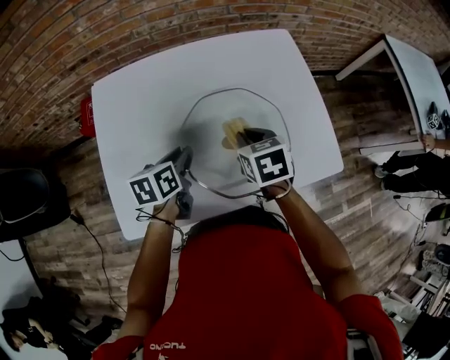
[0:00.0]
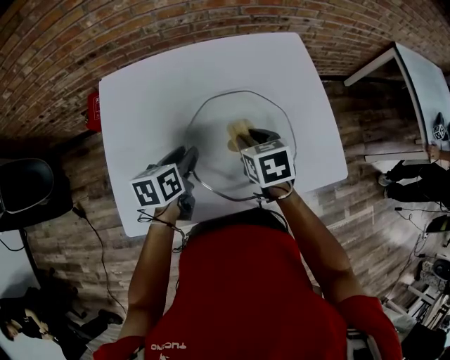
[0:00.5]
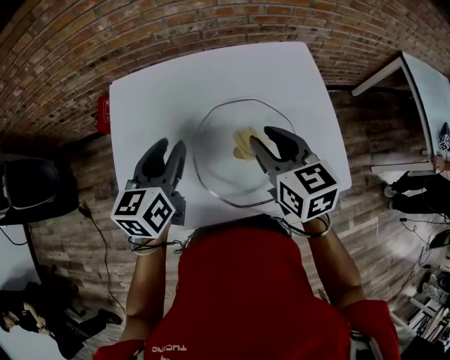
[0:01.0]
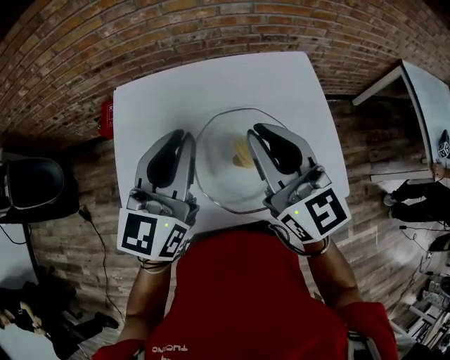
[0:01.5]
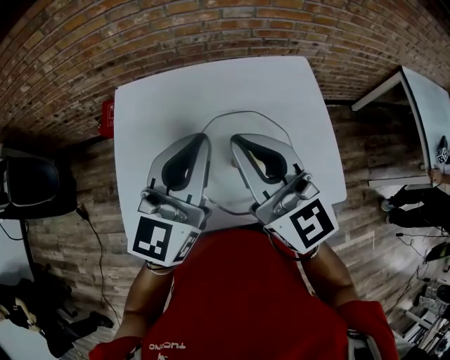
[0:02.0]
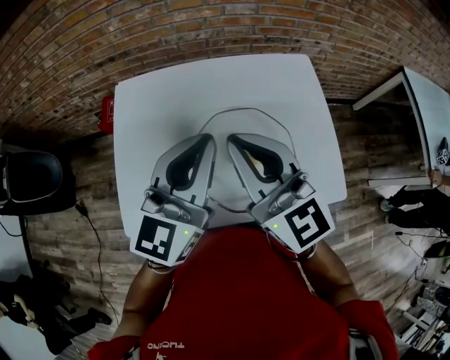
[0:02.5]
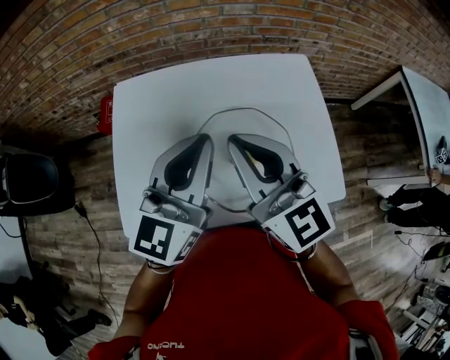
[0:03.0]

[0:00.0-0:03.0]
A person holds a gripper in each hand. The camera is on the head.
0:00.0 to 0:01.5: Both grippers travel together upward, some 25 cm. The right gripper angles its fingers upward, by approximately 50 degrees, and opens, then closes again, while the left gripper tilts its fingers roughly 40 degrees upward.
0:01.5 to 0:03.0: The grippers stay close to where they were, moving slightly.

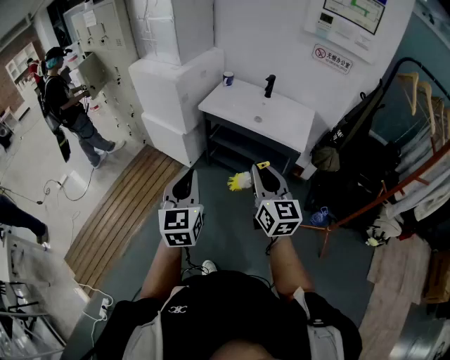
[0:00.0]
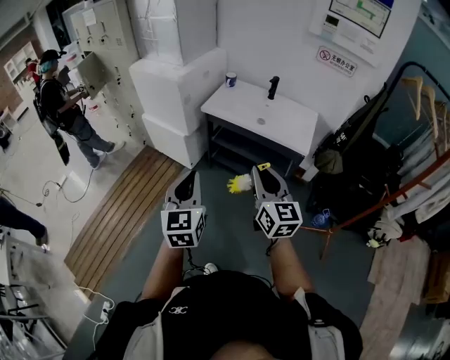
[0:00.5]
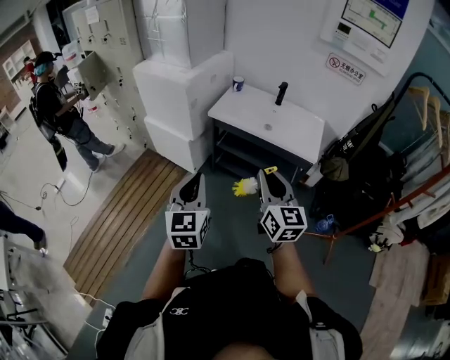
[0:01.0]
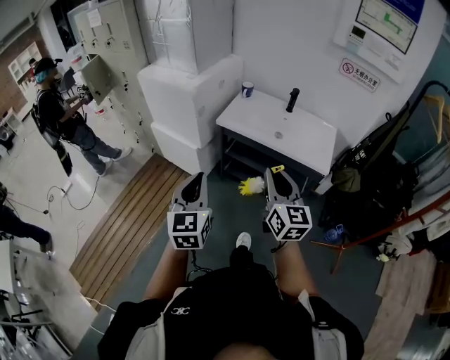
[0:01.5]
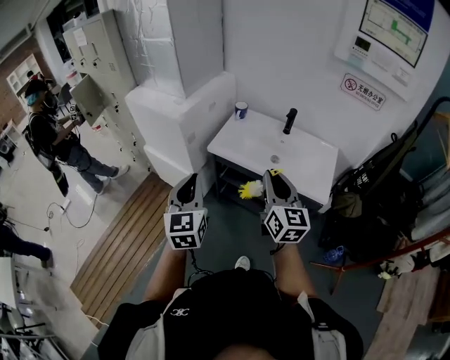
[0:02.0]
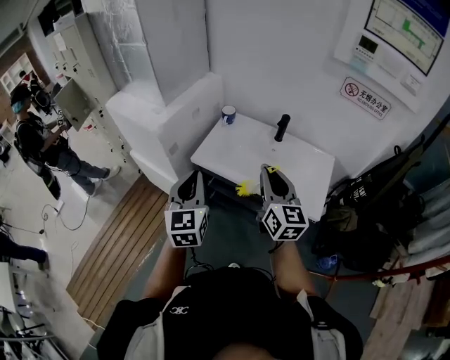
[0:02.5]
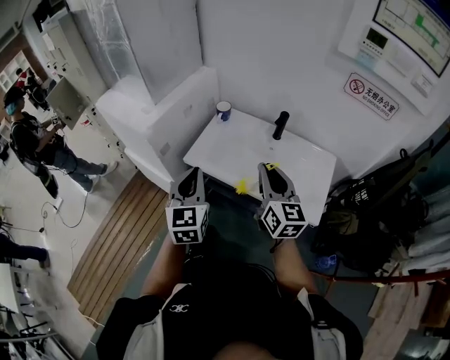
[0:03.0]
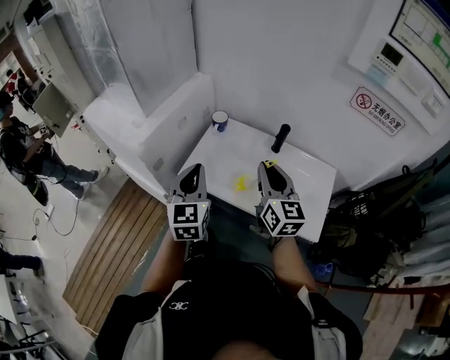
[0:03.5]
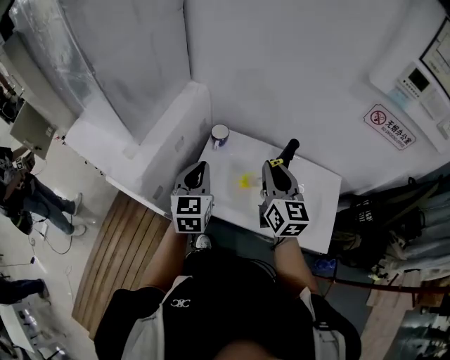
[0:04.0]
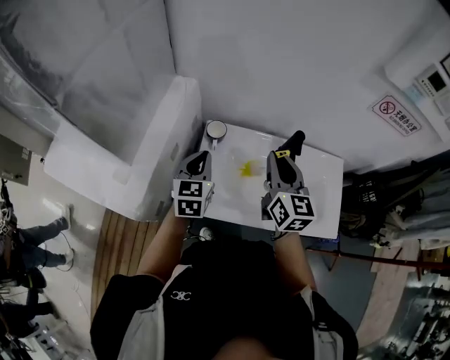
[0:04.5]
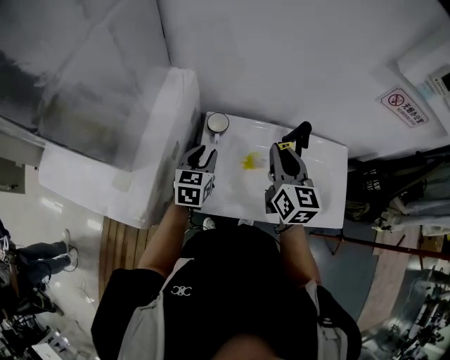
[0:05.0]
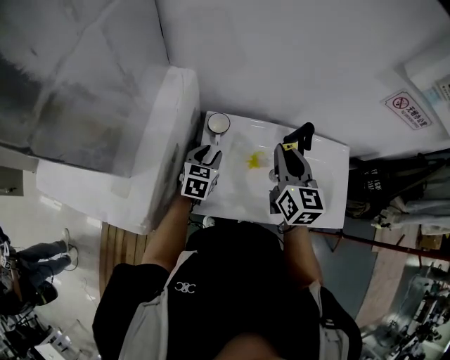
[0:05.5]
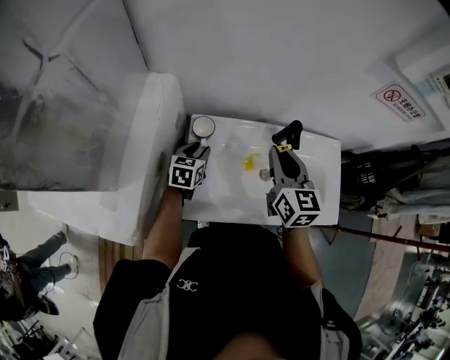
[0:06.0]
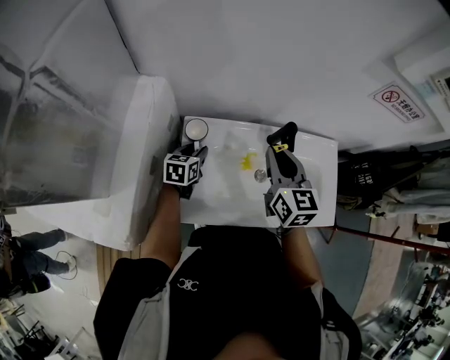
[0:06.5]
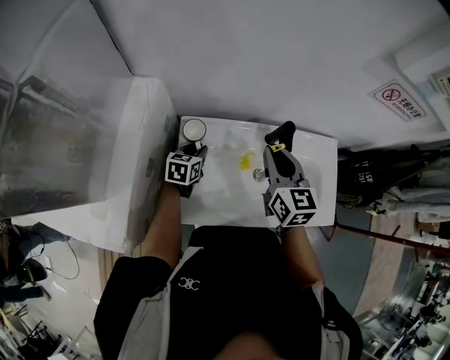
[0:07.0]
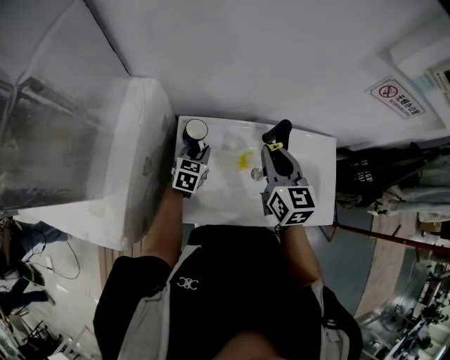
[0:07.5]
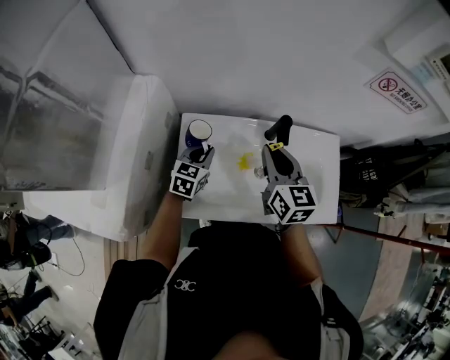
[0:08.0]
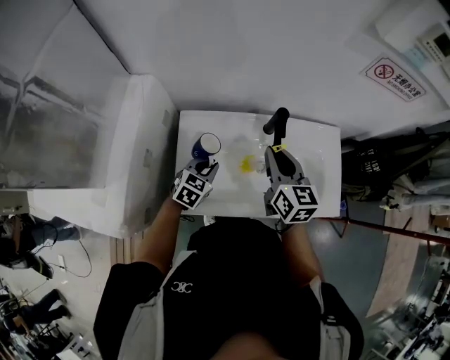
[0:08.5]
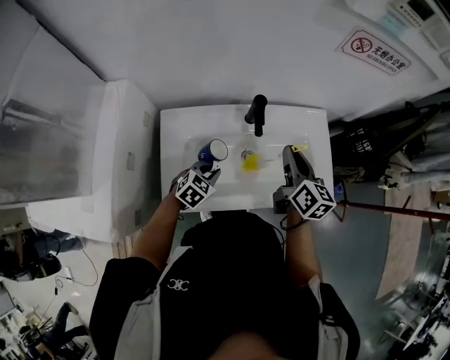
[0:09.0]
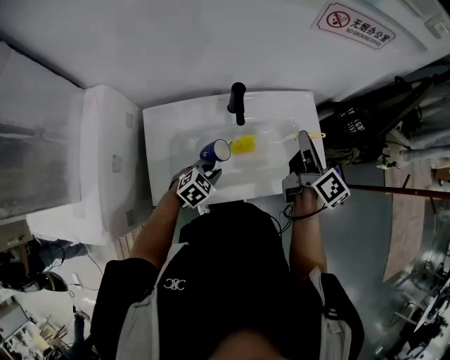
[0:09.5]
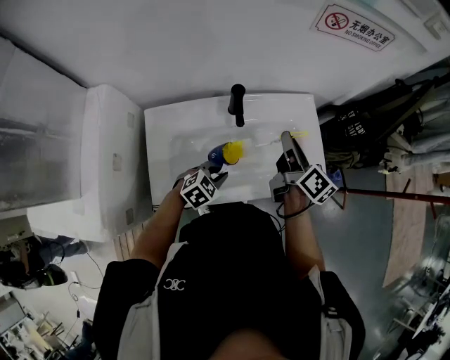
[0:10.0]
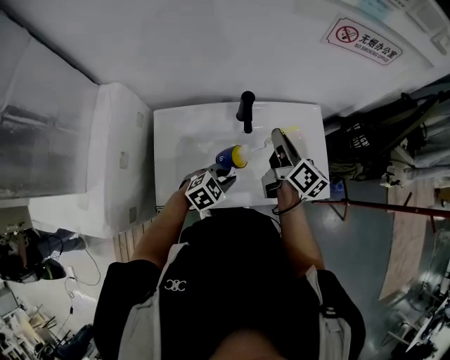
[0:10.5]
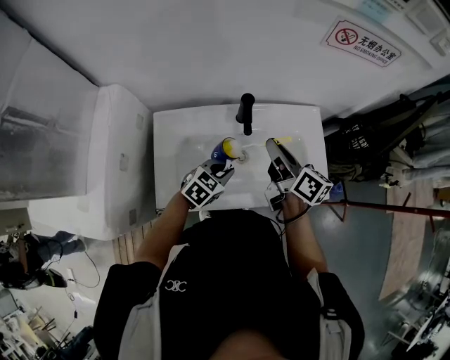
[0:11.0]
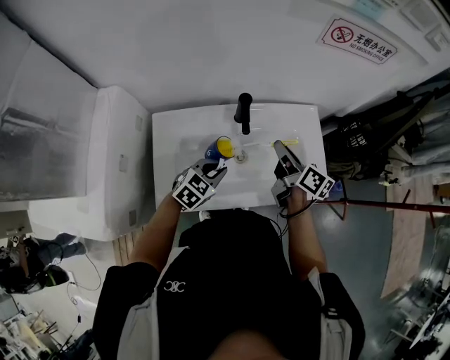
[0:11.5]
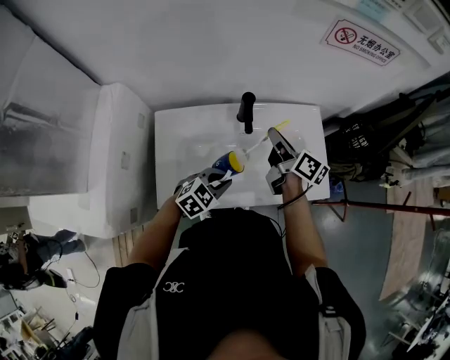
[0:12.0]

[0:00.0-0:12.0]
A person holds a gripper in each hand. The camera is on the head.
0:00.0 to 0:02.0: The two grippers go roughly 30 cm forward.
0:02.0 to 0:04.0: The grippers both shift forward by some 40 cm.
0:04.0 to 0:06.0: The left gripper heads downward and forward, covering some 30 cm, changes its angle by roughly 40 degrees, and opens up; the right gripper is displaced forward and downward by roughly 10 cm.
0:06.0 to 0:08.0: The left gripper goes approximately 5 cm to the right, and closes its fingers.
0:08.0 to 0:10.0: The right gripper ends up about 20 cm from where it was, and rotates around the line of its fingers by roughly 40 degrees, clockwise from behind, while the left gripper changes place by about 25 cm, and turns by roughly 50 degrees.
0:10.0 to 0:12.0: The right gripper is displaced to the left by some 5 cm.

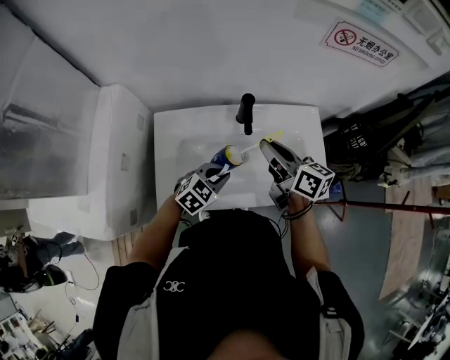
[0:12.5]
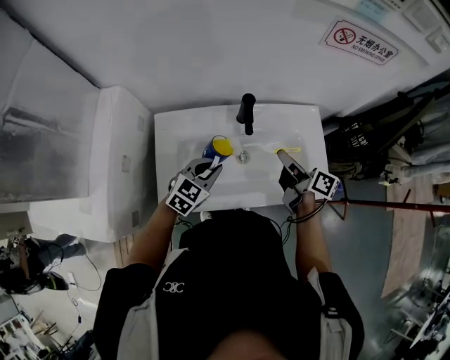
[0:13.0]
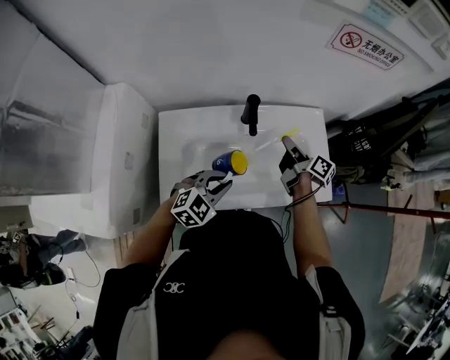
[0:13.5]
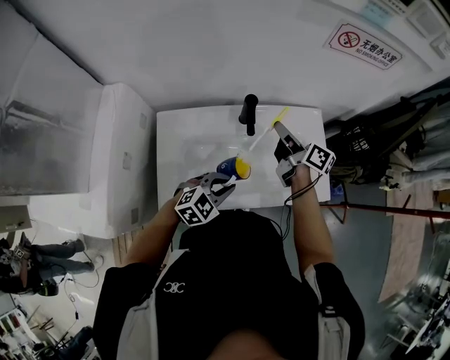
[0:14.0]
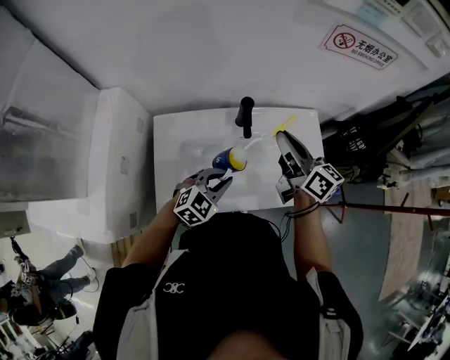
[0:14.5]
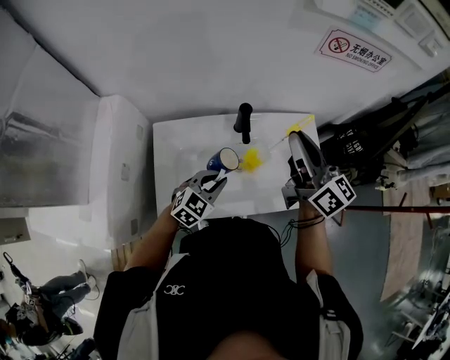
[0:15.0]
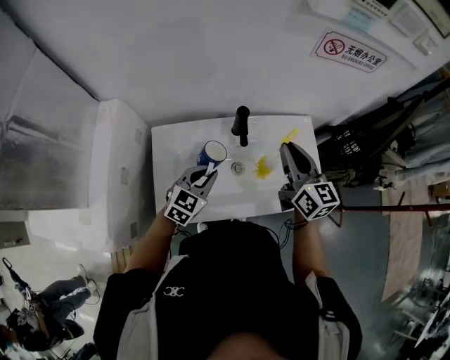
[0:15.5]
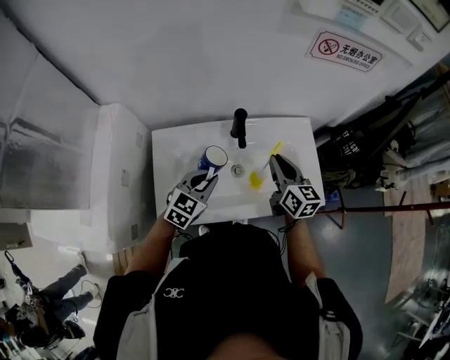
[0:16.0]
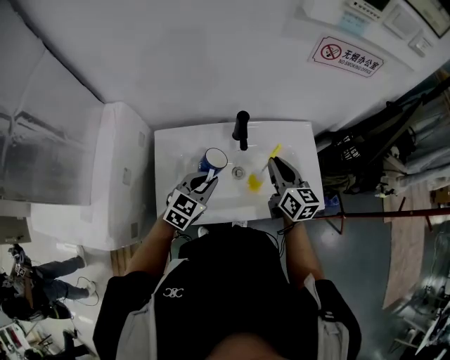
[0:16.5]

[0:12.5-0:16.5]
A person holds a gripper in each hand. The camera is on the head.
0:12.5 to 0:14.5: The right gripper reaches about 10 cm downward, then returns.
0:14.5 to 0:16.5: The right gripper goes roughly 5 cm downward, and turns by approximately 20 degrees. The left gripper ends up approximately 5 cm from where it was.

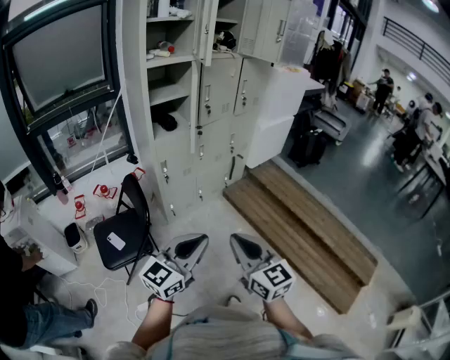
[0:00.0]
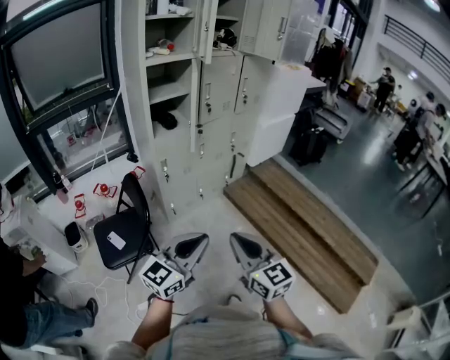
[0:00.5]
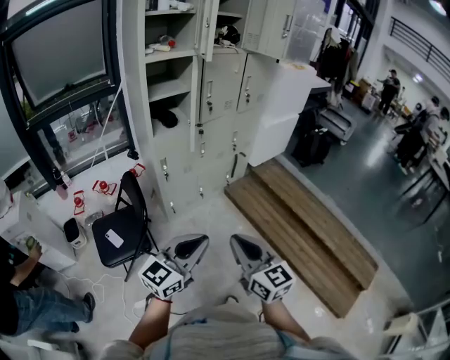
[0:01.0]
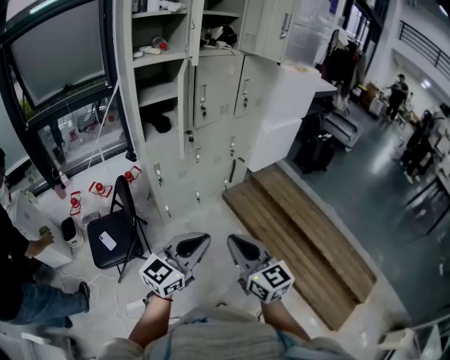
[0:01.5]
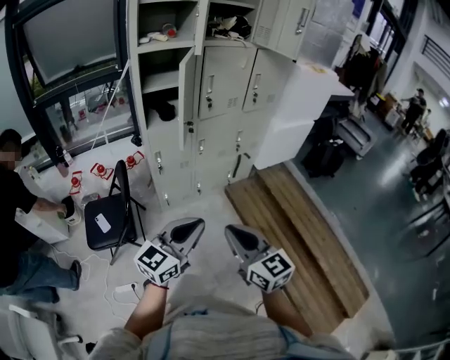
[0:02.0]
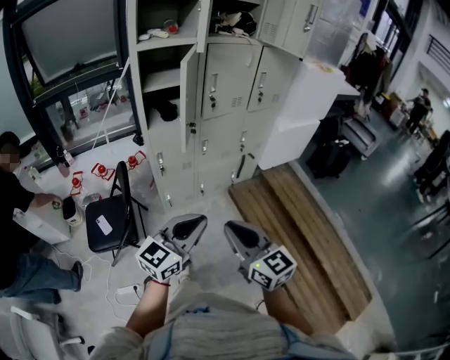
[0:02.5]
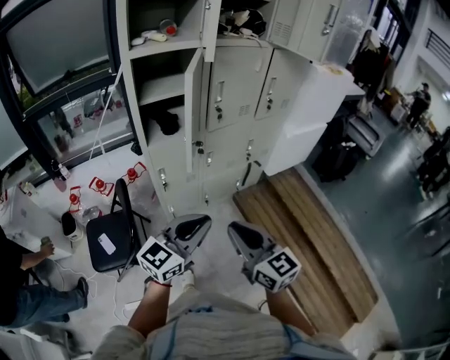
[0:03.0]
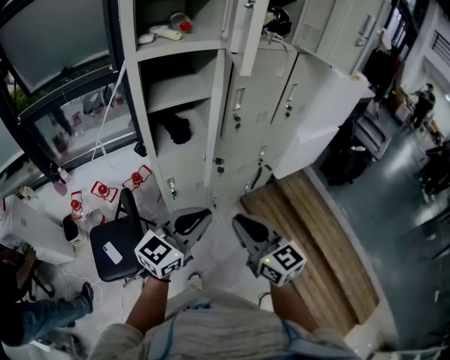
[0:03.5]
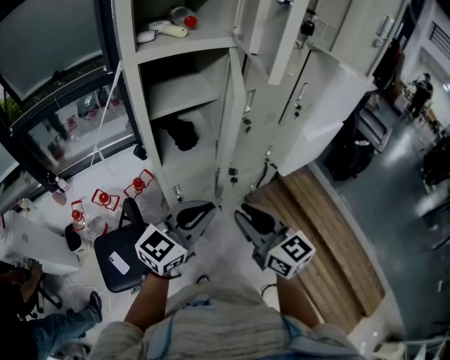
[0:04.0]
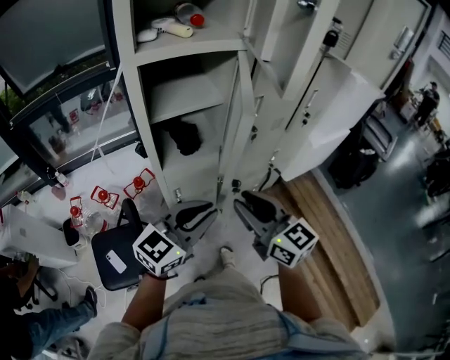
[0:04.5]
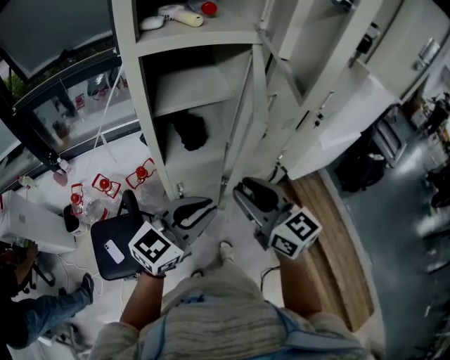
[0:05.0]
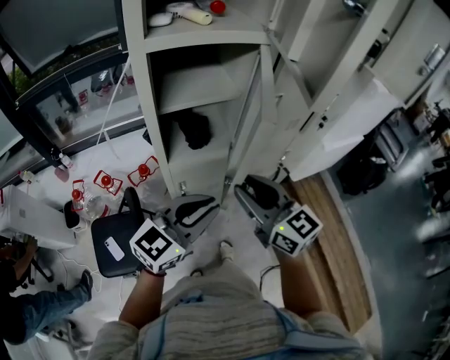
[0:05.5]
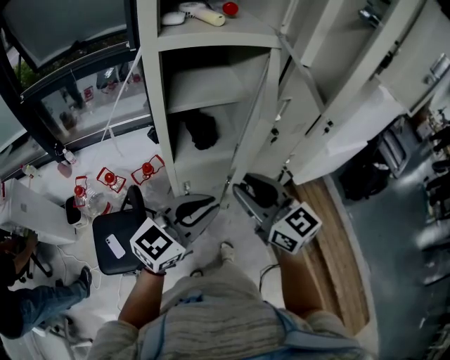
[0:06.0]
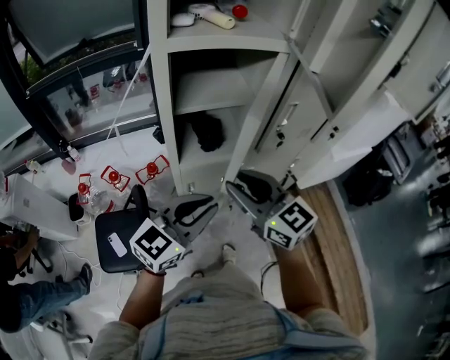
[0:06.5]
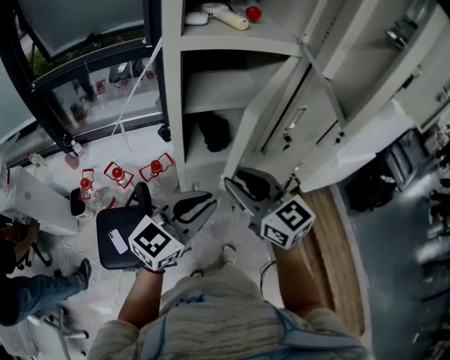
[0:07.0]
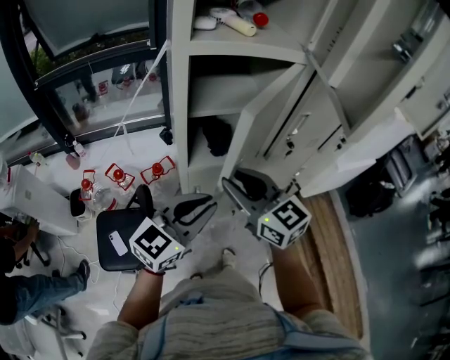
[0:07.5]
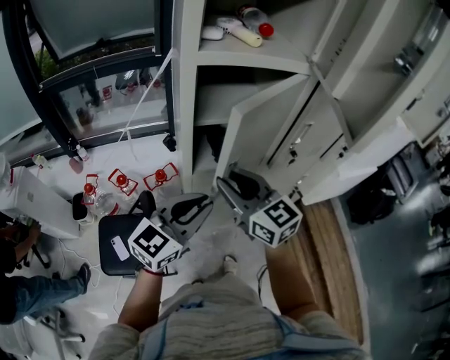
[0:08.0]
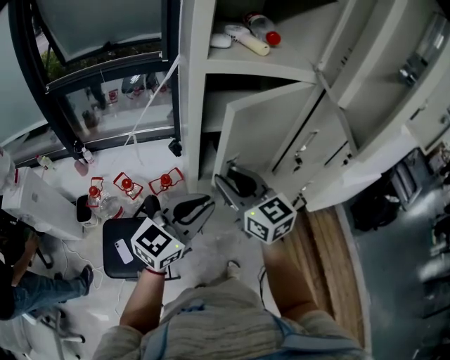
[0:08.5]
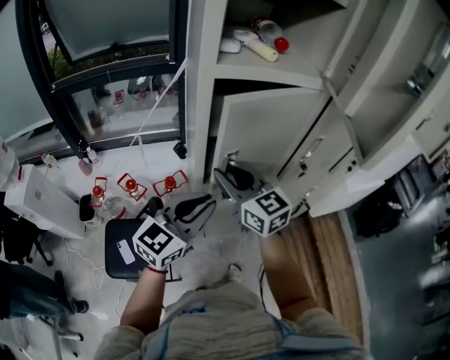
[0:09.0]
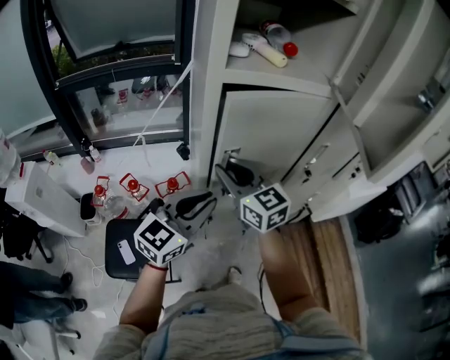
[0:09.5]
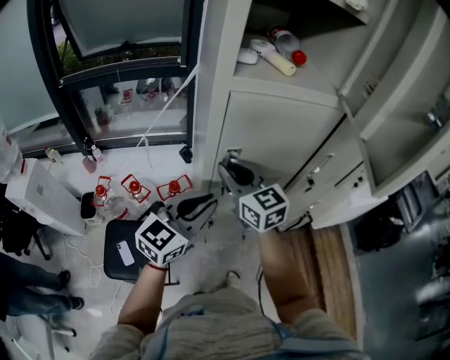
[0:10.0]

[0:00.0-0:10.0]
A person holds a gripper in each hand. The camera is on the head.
0:00.0 to 0:02.0: Both grippers travel together forward and to the right, approximately 15 cm.
0:02.0 to 0:04.0: The two grippers go approximately 35 cm forward and to the left.
0:04.0 to 0:06.0: The left gripper moves forward, about 5 cm, while the right gripper moves forward, roughly 10 cm.
0:06.0 to 0:08.0: The right gripper shifts about 10 cm to the left and forward. Meanwhile the left gripper shifts some 5 cm to the left.
0:08.0 to 0:10.0: The left gripper goes roughly 5 cm forward; the right gripper shifts about 10 cm forward and to the left.
